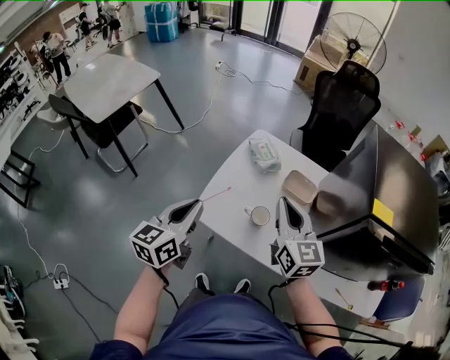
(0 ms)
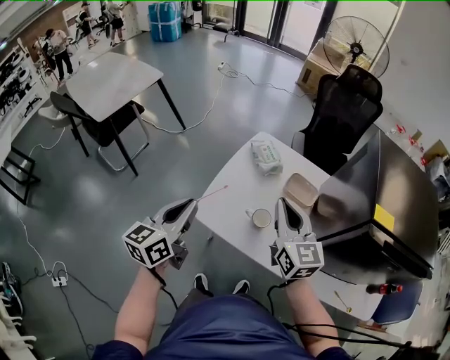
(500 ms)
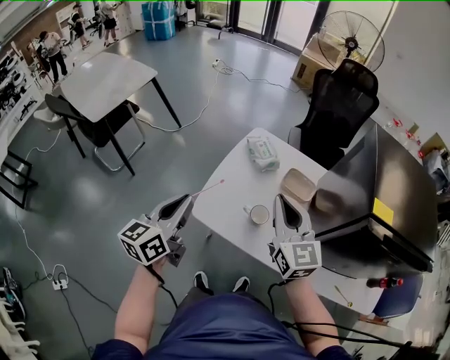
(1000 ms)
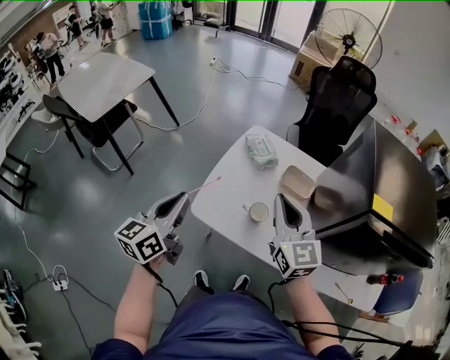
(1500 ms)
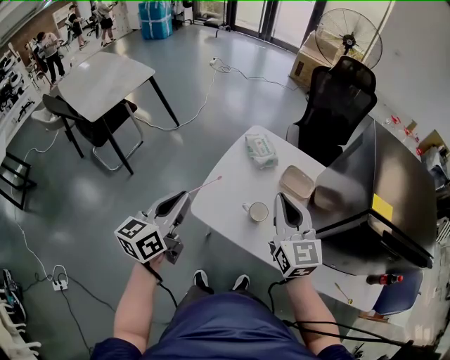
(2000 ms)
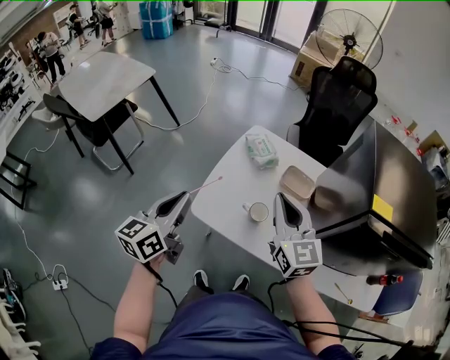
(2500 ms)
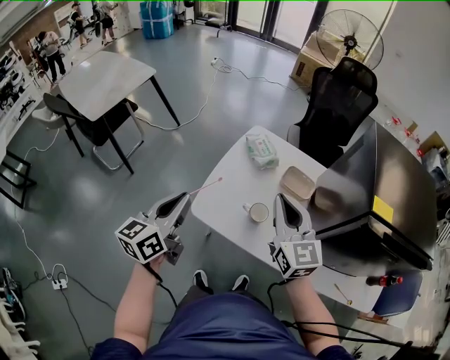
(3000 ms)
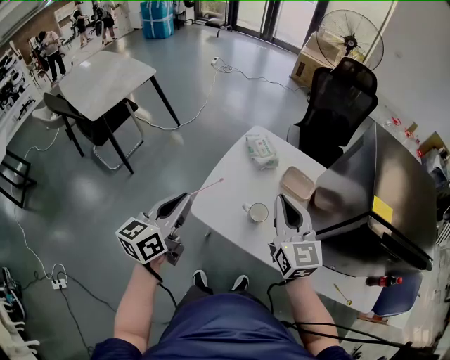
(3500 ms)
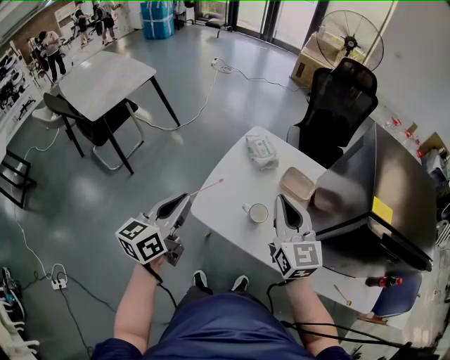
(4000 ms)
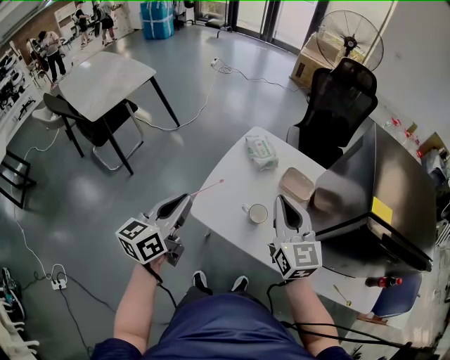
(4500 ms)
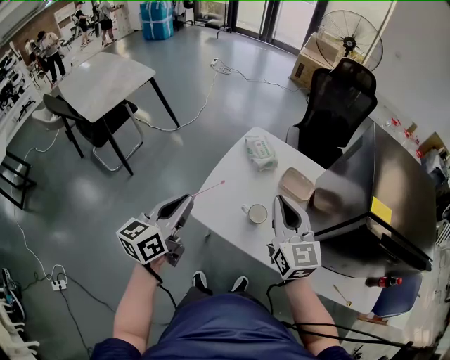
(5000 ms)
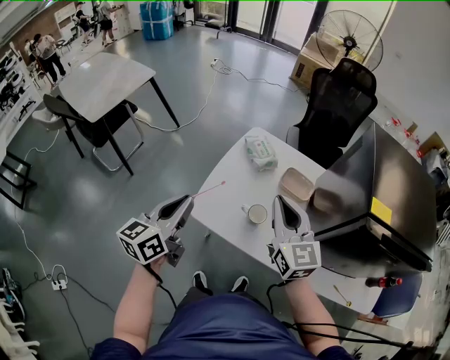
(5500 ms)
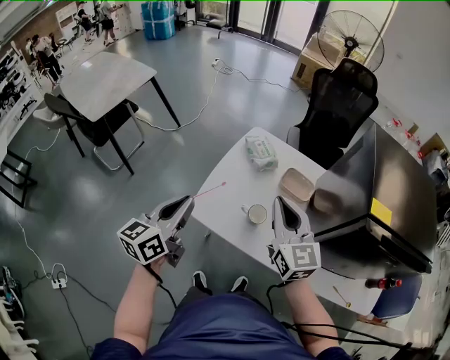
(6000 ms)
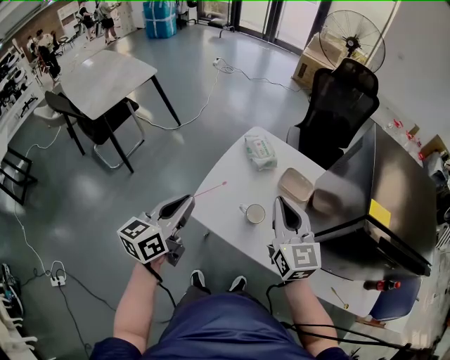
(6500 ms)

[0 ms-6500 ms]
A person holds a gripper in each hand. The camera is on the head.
0 ms to 2000 ms: The grippers make only small movements.
2000 ms to 4500 ms: The two grippers keep their place.
4500 ms to 6500 ms: There are only small adjustments of the grippers.

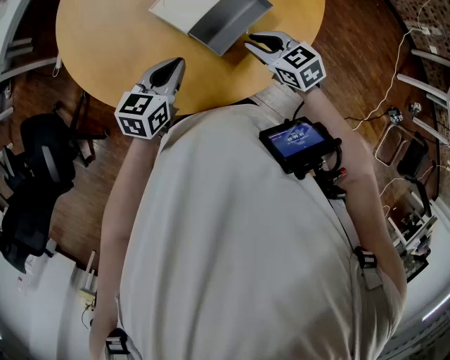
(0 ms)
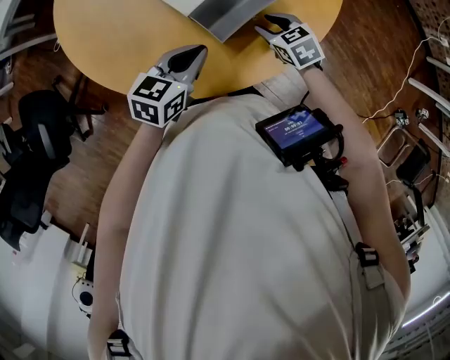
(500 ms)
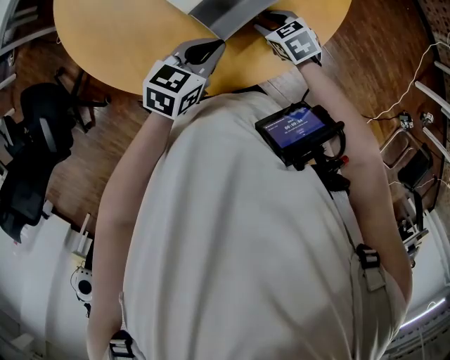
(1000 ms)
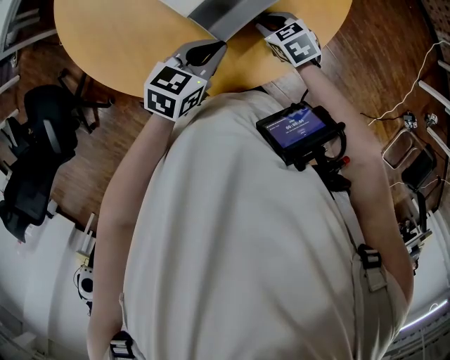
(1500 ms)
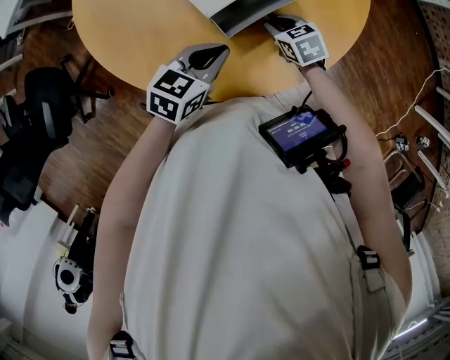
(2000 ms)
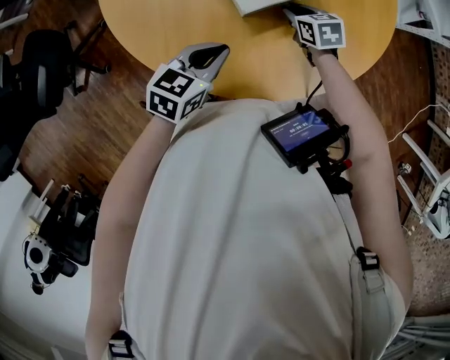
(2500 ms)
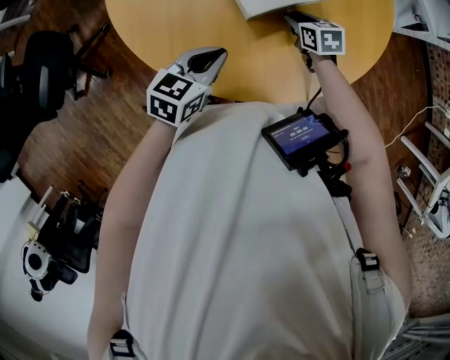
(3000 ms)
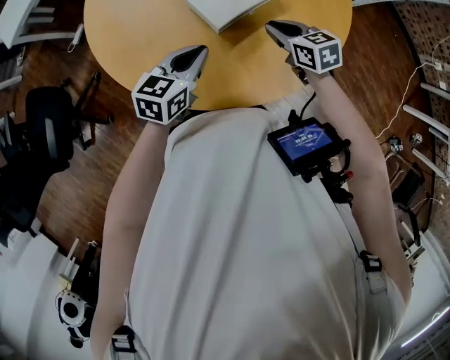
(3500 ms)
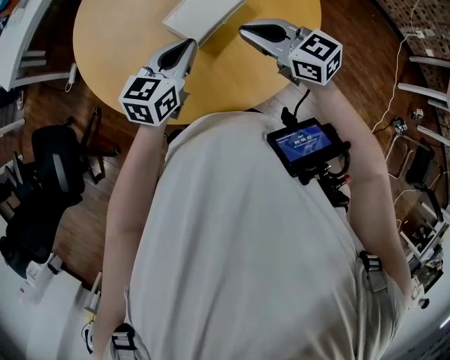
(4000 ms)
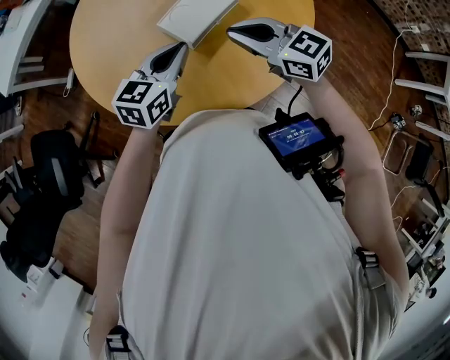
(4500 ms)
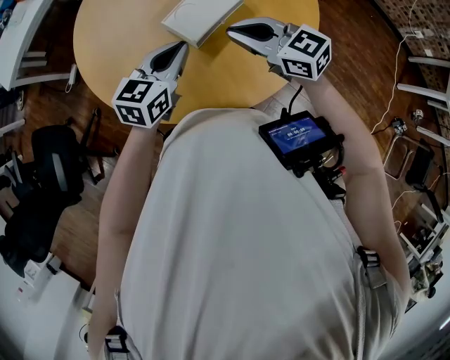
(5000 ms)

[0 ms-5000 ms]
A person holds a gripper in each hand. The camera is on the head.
0 ms to 2500 ms: The left gripper is displaced backward by some 5 cm, and reaches approximately 10 cm to the right, then returns. Meanwhile the right gripper heads forward and downward, covering about 10 cm.
2500 ms to 5000 ms: The left gripper moves forward and upward, about 15 cm. The right gripper is displaced upward by roughly 20 cm, and angles its fingers upward, by roughly 40 degrees.

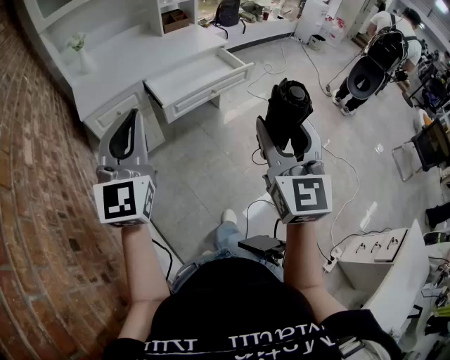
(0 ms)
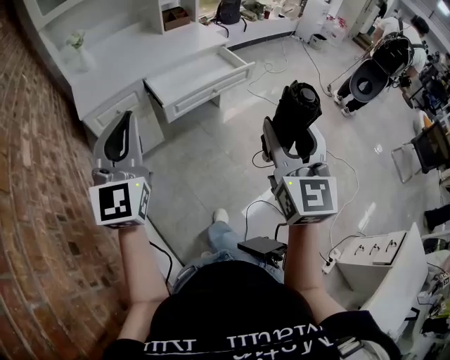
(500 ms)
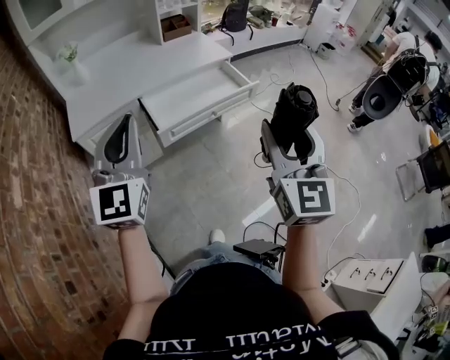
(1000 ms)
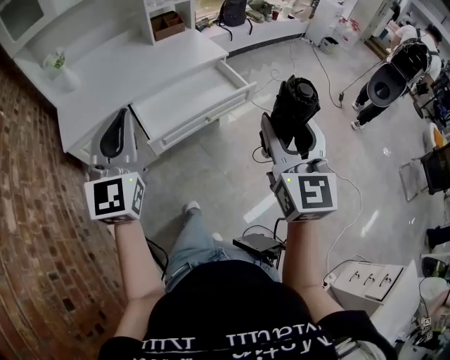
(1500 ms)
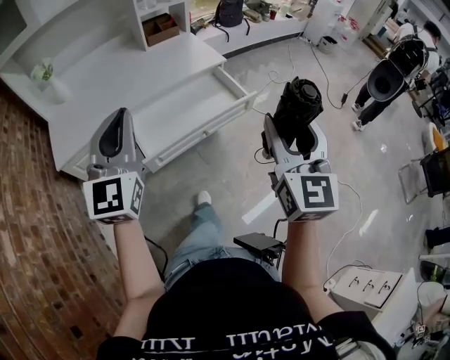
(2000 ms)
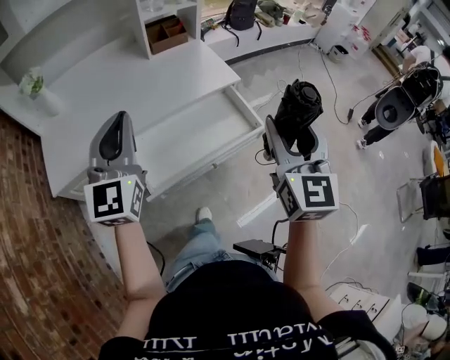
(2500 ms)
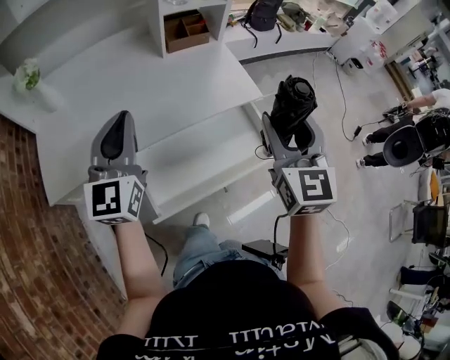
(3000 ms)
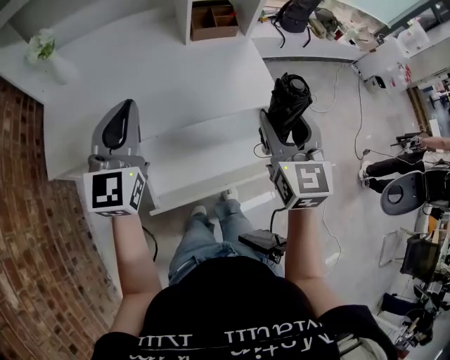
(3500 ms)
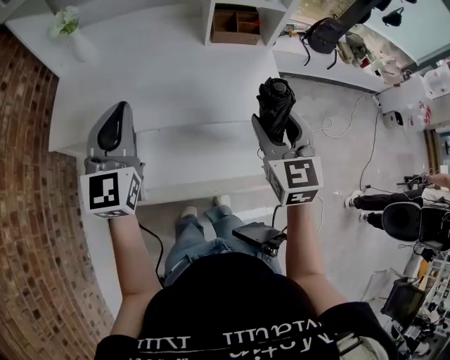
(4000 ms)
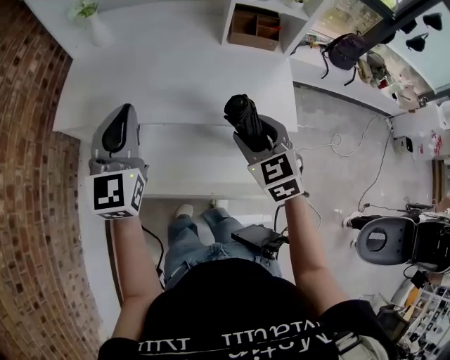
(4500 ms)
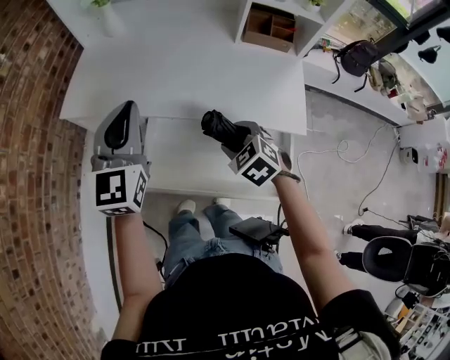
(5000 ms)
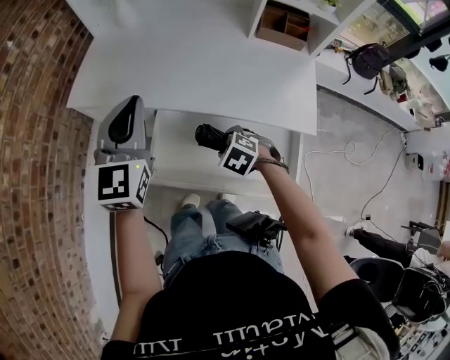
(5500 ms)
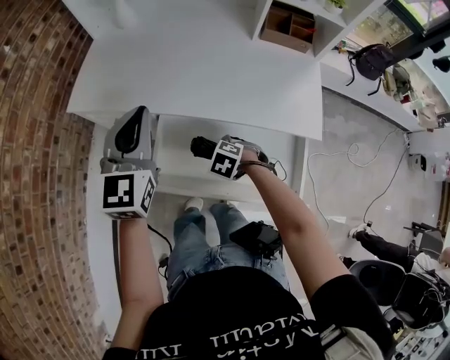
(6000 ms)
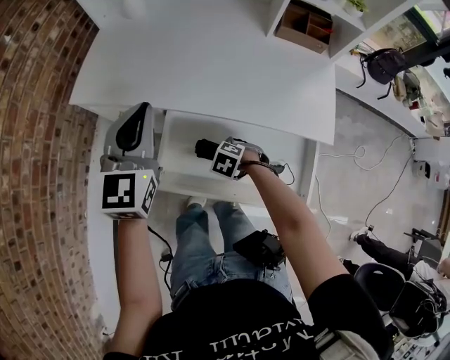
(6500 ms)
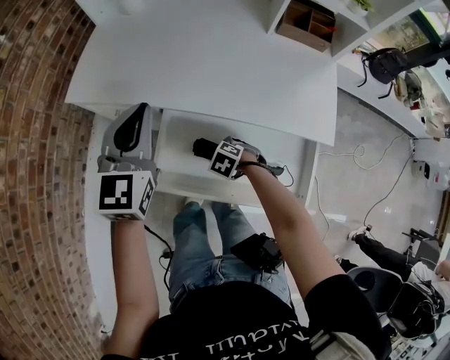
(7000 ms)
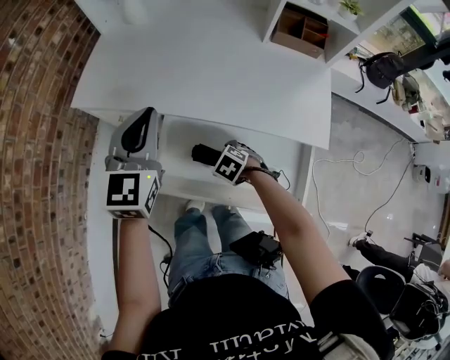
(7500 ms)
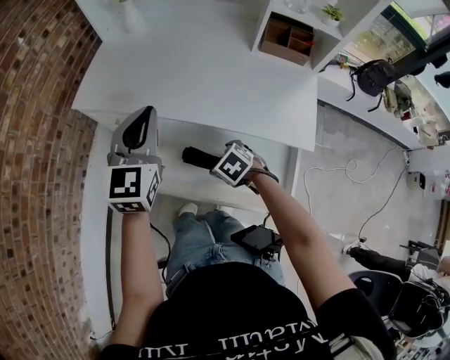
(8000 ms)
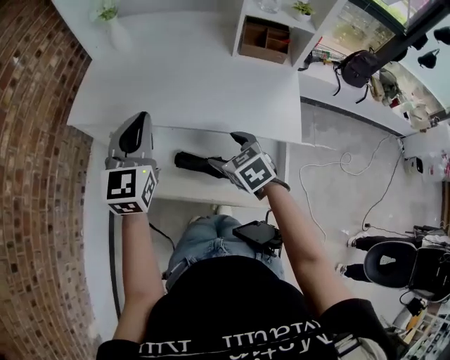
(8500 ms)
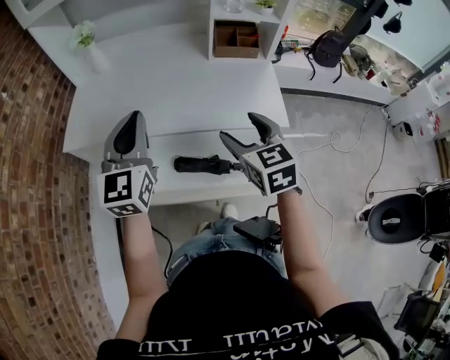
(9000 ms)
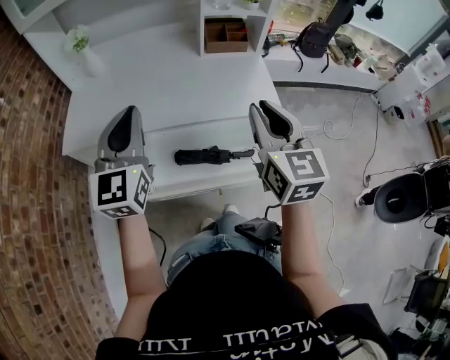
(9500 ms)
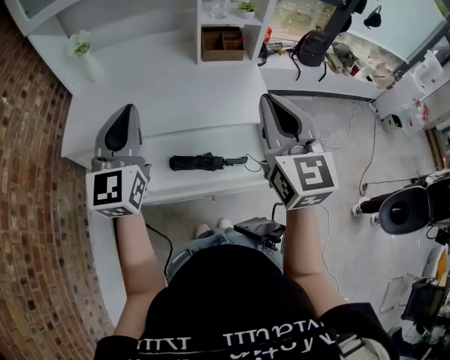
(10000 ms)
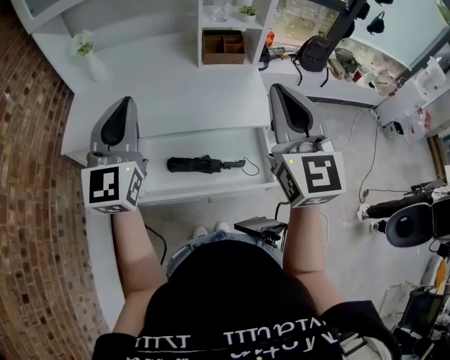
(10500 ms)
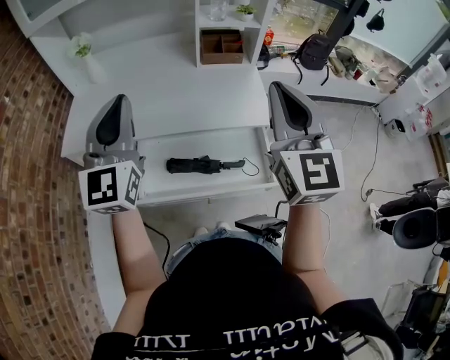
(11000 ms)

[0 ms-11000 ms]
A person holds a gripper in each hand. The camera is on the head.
0 ms to 2000 ms: Both grippers travel together forward, roughly 30 cm.
2000 ms to 3500 ms: The two grippers go roughly 35 cm forward. The right gripper changes its angle by some 20 degrees.
3500 ms to 5500 ms: The right gripper goes about 30 cm downward, and points its fingers about 60 degrees further downward; the left gripper shifts by roughly 5 cm, and turns by about 30 degrees.
5500 ms to 7500 ms: The right gripper goes some 10 cm downward, and opens its fingers.
7500 ms to 9000 ms: The left gripper moves upward, some 10 cm, while the right gripper travels upward by roughly 35 cm, and tips its fingers upward by roughly 50 degrees.
9000 ms to 11000 ms: The left gripper travels upward by approximately 10 cm. Meanwhile the right gripper moves upward and to the right, approximately 20 cm, angles its fingers upward, by roughly 30 degrees, and closes up.

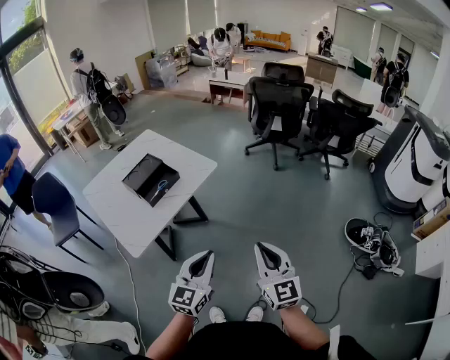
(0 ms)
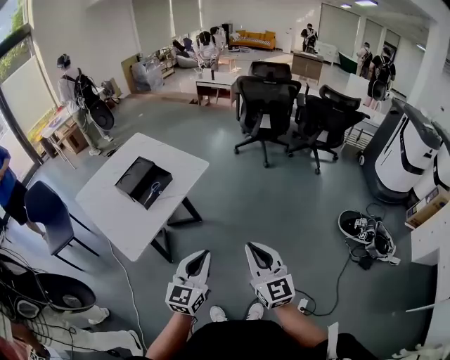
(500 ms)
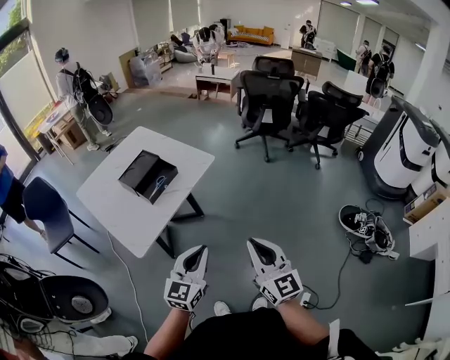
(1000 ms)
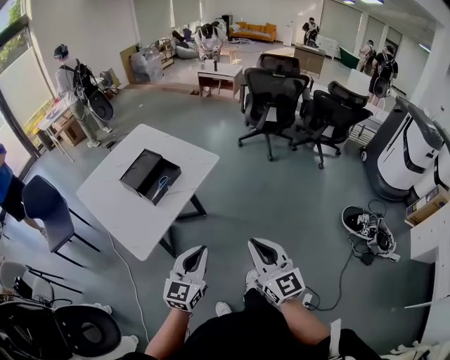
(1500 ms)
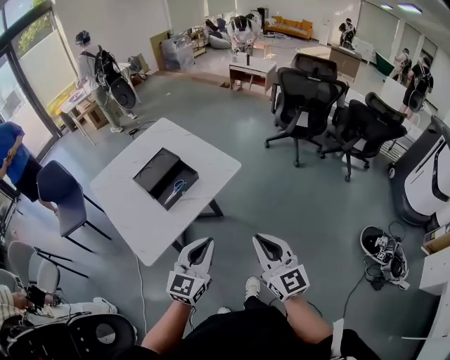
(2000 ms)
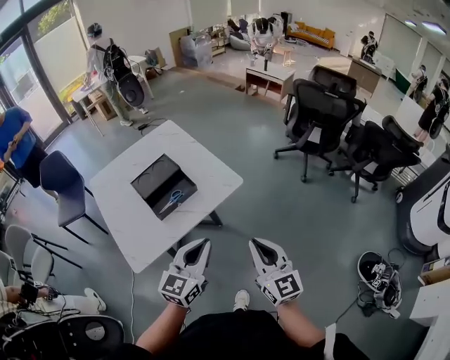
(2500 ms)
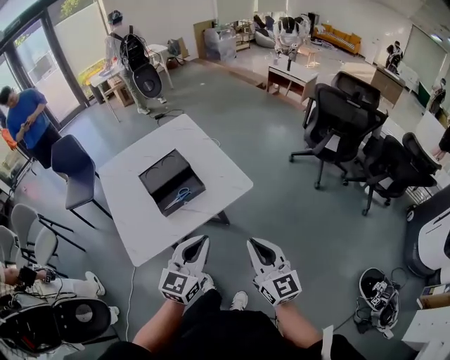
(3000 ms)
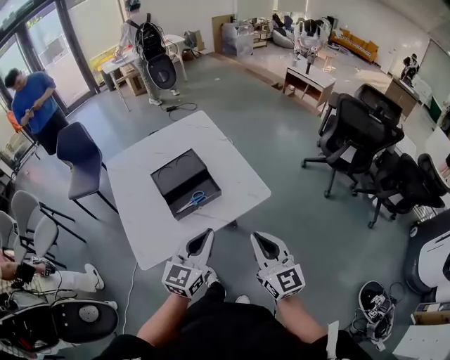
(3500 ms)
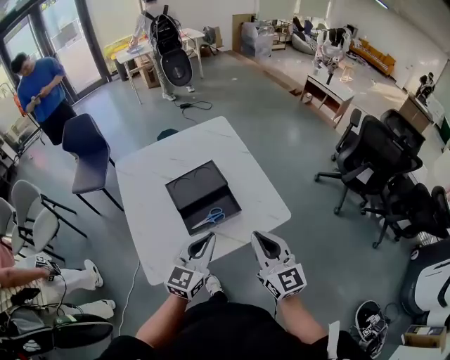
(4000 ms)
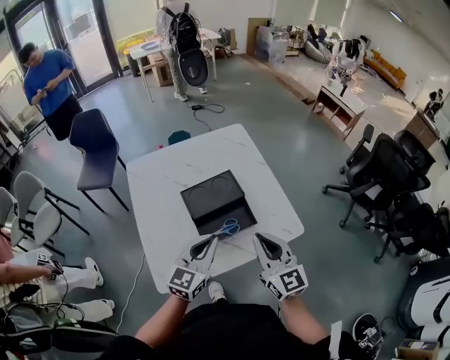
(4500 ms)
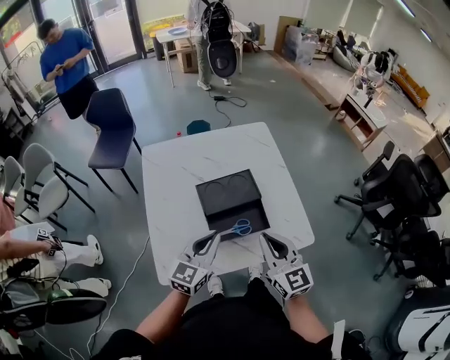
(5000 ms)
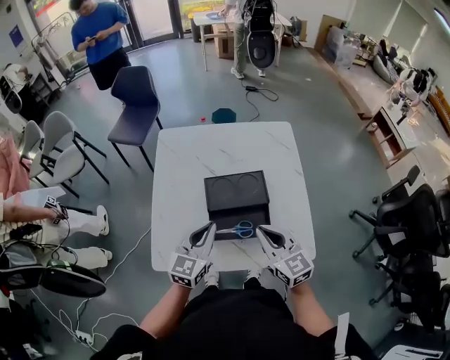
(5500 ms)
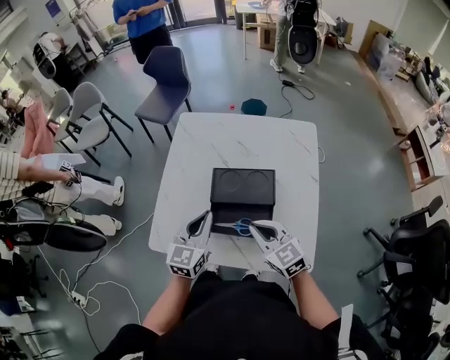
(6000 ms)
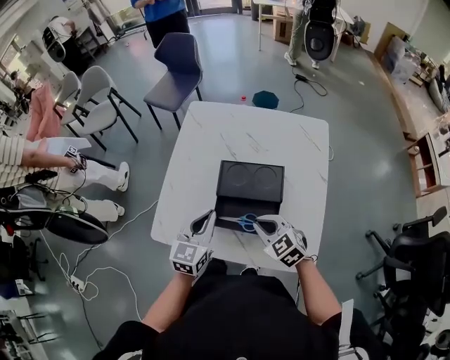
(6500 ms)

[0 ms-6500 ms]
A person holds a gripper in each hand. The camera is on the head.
0 ms to 2000 ms: The grippers both shift forward and to the left by roughly 15 cm.
2000 ms to 4500 ms: Both grippers move forward and to the left, about 30 cm. The left gripper changes its angle by roughly 20 degrees, while the right gripper changes its angle by roughly 30 degrees.
4500 ms to 6500 ms: The right gripper shifts some 15 cm downward, and tips its fingers downward by some 30 degrees. The left gripper moves some 10 cm, and rotates some 40 degrees.
